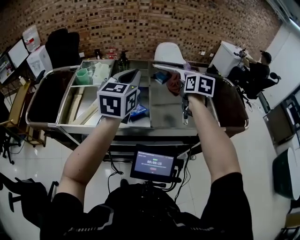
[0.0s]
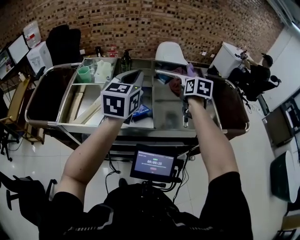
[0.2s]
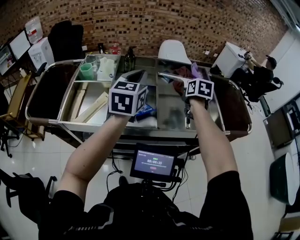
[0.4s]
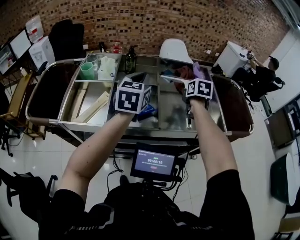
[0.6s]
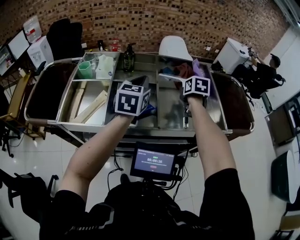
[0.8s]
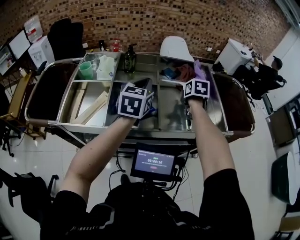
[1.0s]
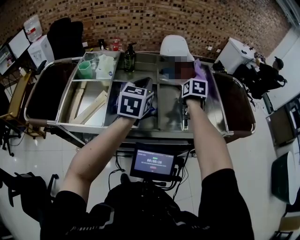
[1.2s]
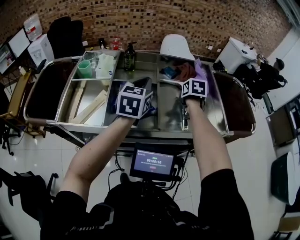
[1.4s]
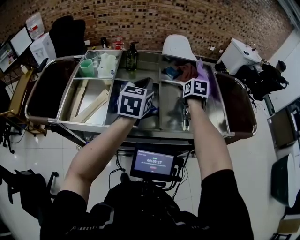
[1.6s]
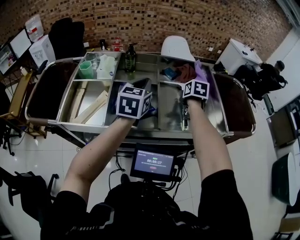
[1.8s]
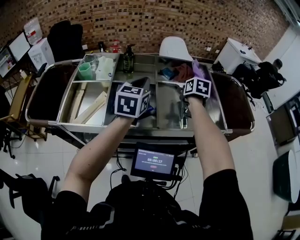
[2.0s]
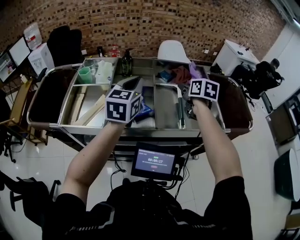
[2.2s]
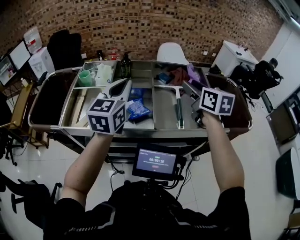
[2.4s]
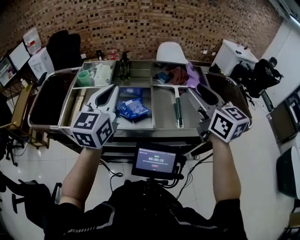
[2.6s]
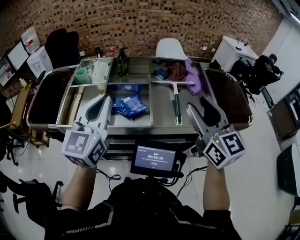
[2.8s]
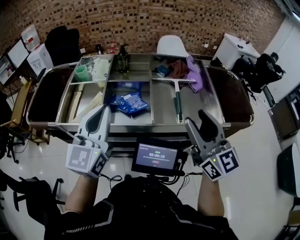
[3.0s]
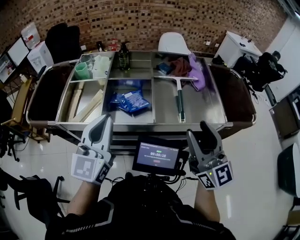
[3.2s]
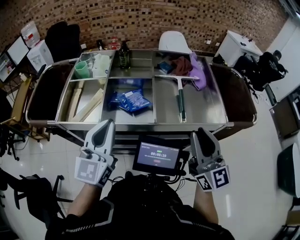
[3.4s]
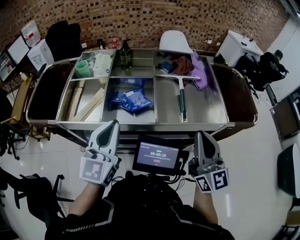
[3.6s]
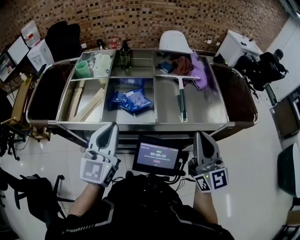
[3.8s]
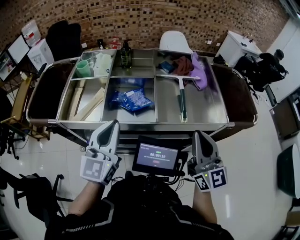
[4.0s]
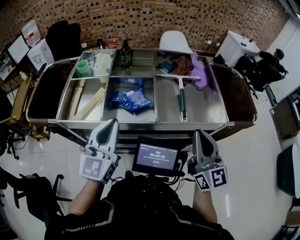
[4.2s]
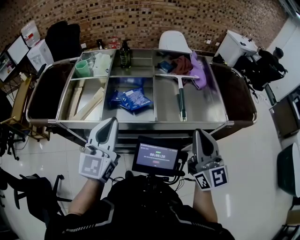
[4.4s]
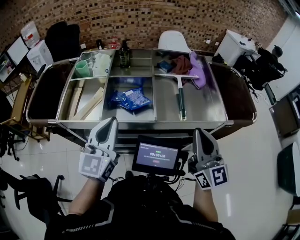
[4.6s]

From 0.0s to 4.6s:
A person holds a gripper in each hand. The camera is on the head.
From 0.0s to 1.6s: The right gripper is displaced downward by approximately 15 cm, and swivels about 20 degrees. The left gripper is displaced downward and forward by some 15 cm.
From 1.6s to 3.0s: The right gripper heads backward and upward, covering approximately 35 cm, angles its fingers upward, by about 60 degrees, and opens. The left gripper travels backward by some 20 cm, and swivels some 20 degrees.
From 3.0s to 4.6s: The two grippers go some 5 cm downward. The right gripper closes its fingers.

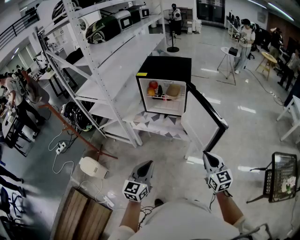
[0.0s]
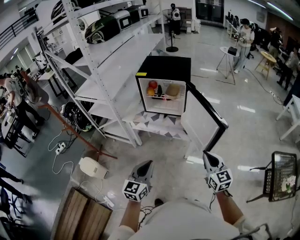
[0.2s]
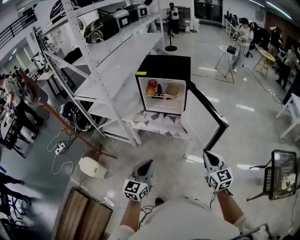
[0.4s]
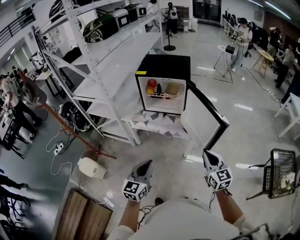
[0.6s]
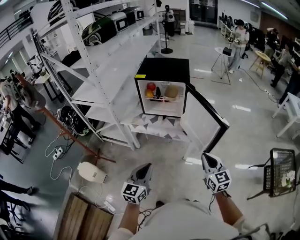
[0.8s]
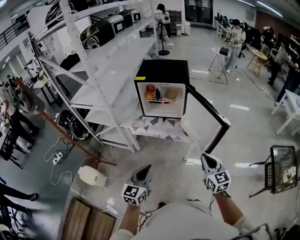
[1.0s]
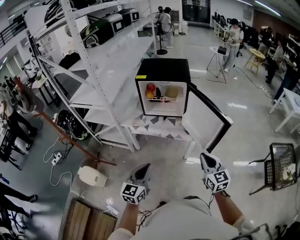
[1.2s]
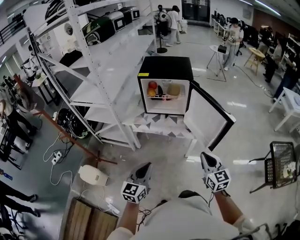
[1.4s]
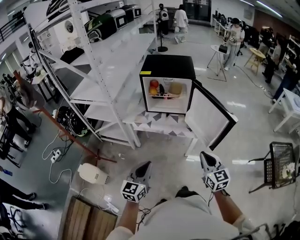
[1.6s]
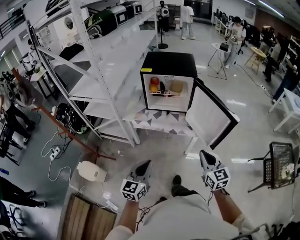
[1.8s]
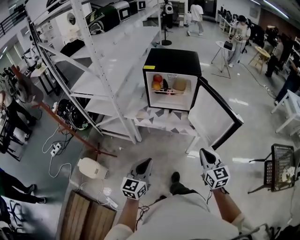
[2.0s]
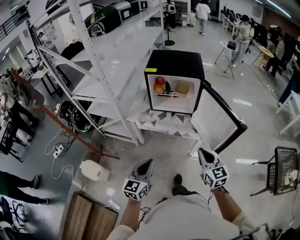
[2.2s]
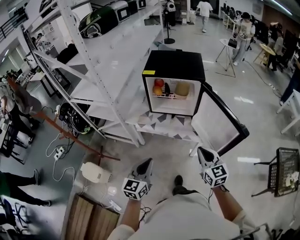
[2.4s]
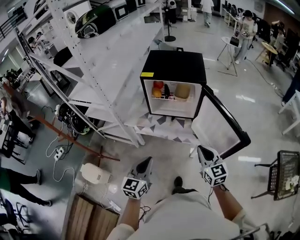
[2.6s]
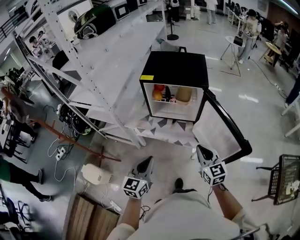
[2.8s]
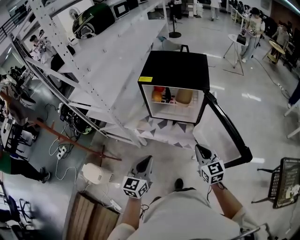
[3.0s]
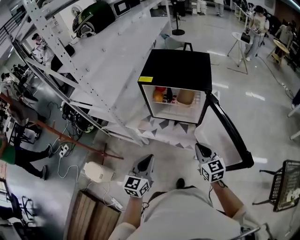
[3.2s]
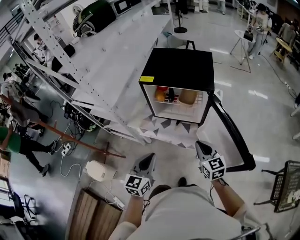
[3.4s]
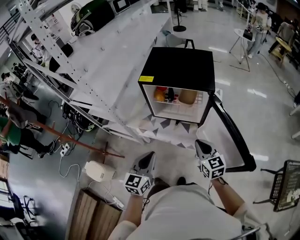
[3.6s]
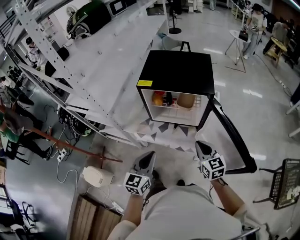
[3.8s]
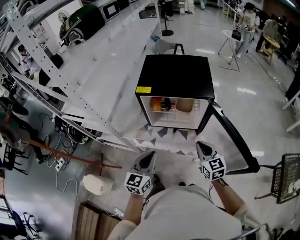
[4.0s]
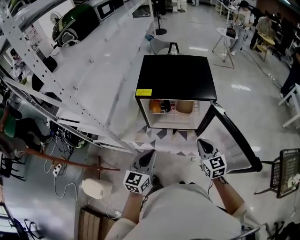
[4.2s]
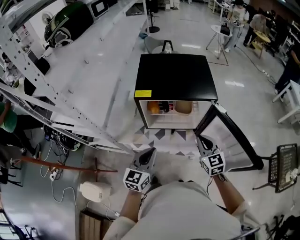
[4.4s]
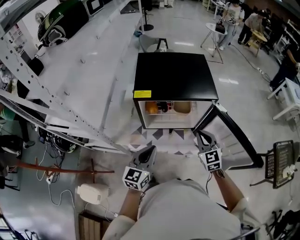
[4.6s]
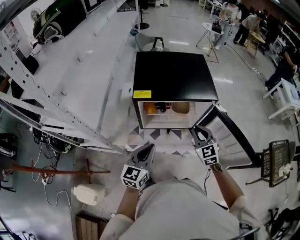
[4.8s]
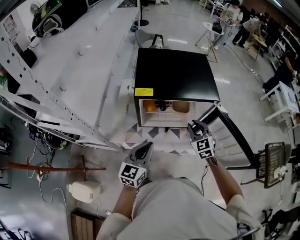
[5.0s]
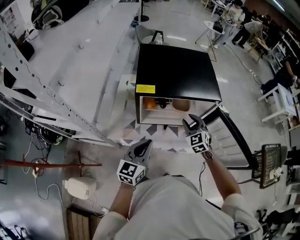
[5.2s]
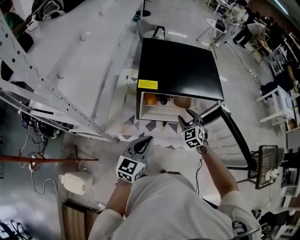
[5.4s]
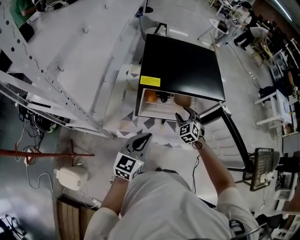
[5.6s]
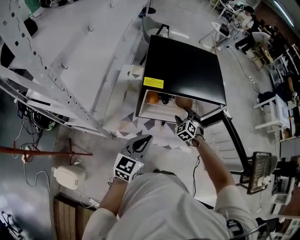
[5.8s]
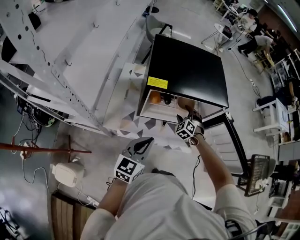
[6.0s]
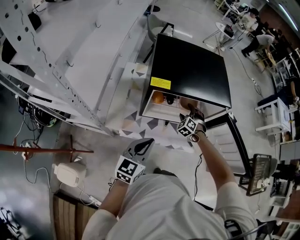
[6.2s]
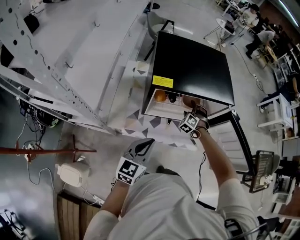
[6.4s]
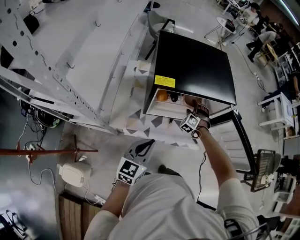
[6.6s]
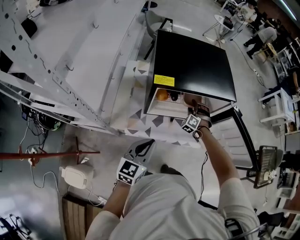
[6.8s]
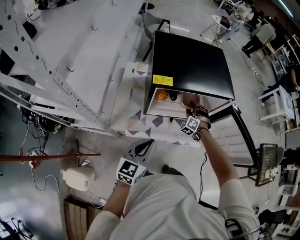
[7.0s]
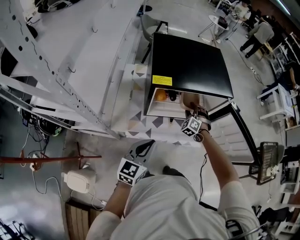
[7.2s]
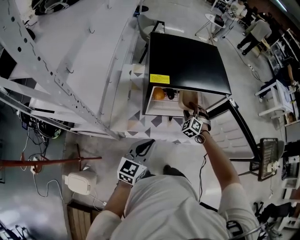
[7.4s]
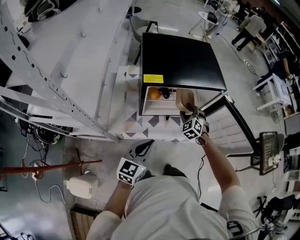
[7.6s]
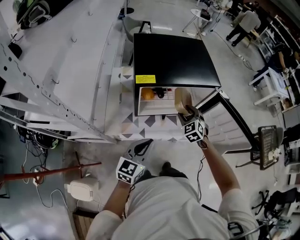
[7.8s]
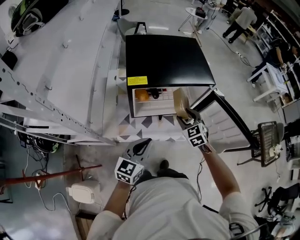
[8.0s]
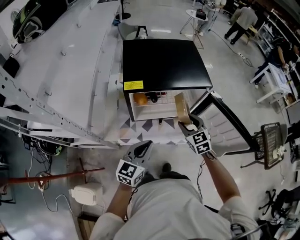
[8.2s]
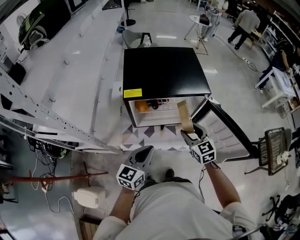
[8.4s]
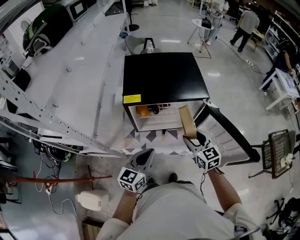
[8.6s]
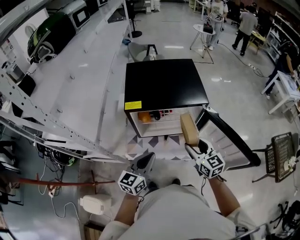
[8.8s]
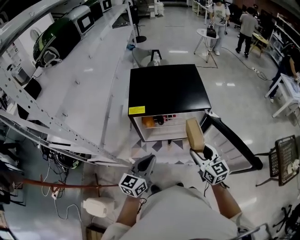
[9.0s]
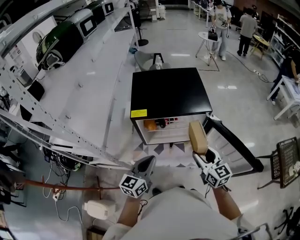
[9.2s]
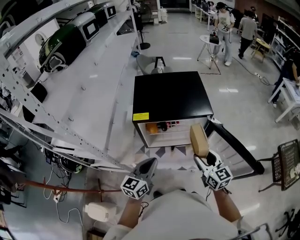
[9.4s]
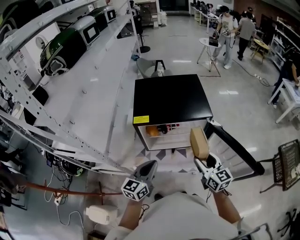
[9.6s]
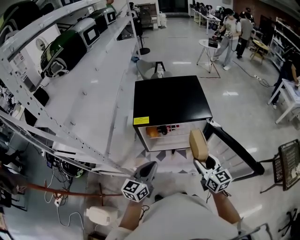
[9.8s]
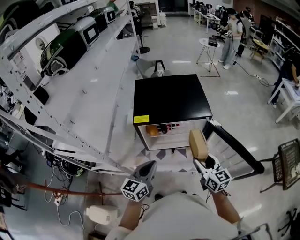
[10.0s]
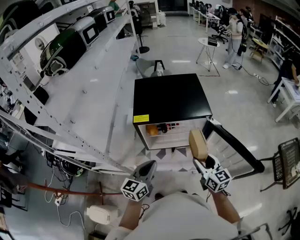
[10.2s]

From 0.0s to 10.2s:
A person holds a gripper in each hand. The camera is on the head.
From 0.0s to 1.4s: Both grippers move to the left, about 10 cm.
From 1.4s to 3.0s: Both grippers move forward, about 25 cm.
From 3.0s to 4.4s: The two grippers go roughly 15 cm forward.
From 4.4s to 5.8s: The right gripper is displaced downward, forward and to the left by about 25 cm, swivels approximately 50 degrees, and opens its fingers, while the left gripper shifts by some 5 cm.
From 7.2s to 8.8s: The right gripper goes some 25 cm upward, backward and to the right, and rolls clockwise, seen from behind, by some 60 degrees. Meanwhile the left gripper travels to the right by approximately 10 cm.
From 8.8s to 10.2s: The grippers make only small movements.

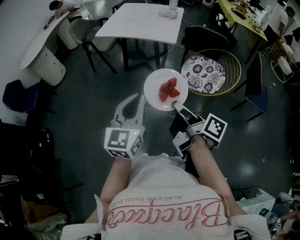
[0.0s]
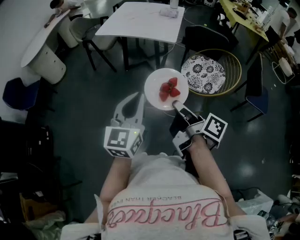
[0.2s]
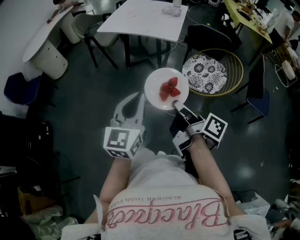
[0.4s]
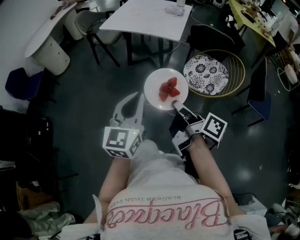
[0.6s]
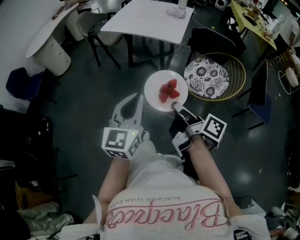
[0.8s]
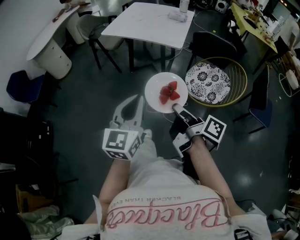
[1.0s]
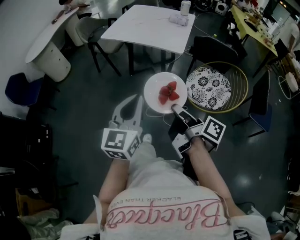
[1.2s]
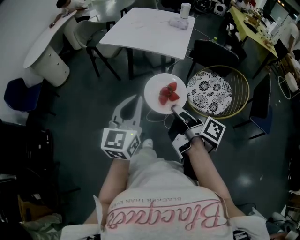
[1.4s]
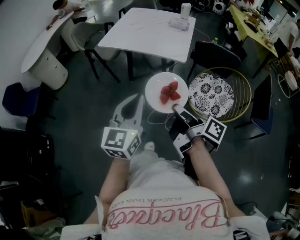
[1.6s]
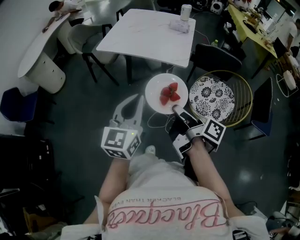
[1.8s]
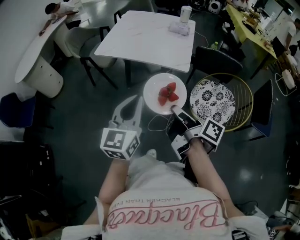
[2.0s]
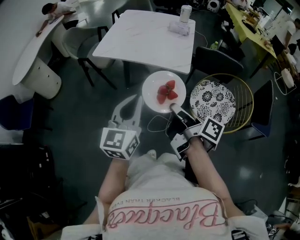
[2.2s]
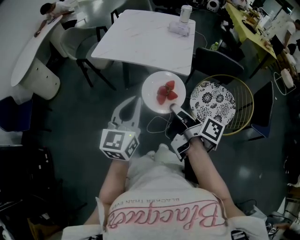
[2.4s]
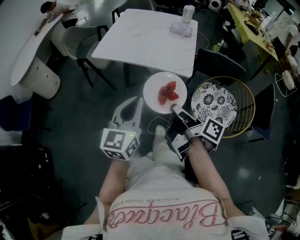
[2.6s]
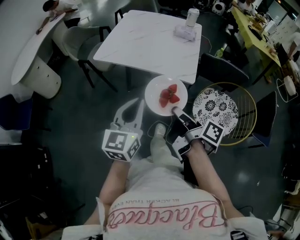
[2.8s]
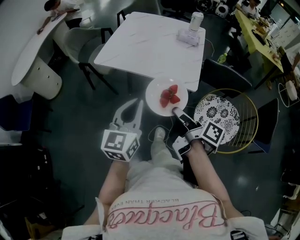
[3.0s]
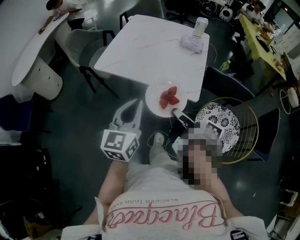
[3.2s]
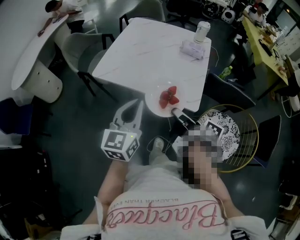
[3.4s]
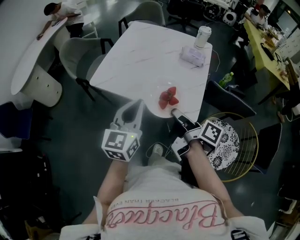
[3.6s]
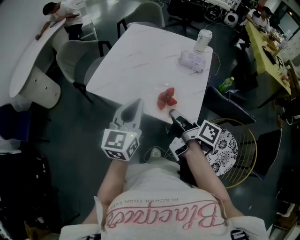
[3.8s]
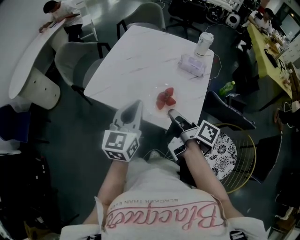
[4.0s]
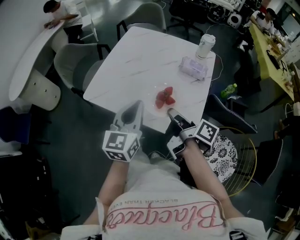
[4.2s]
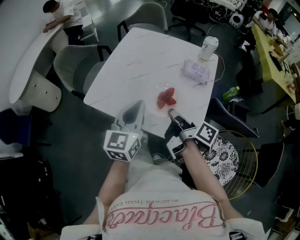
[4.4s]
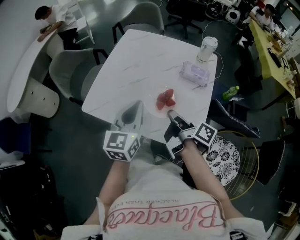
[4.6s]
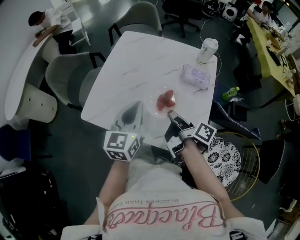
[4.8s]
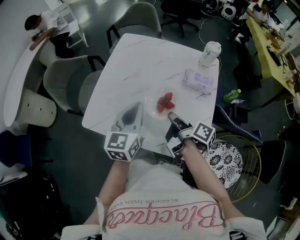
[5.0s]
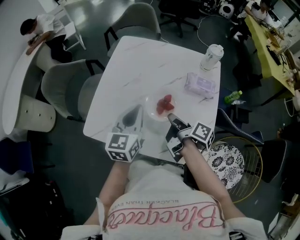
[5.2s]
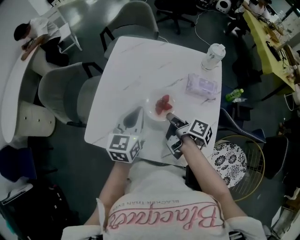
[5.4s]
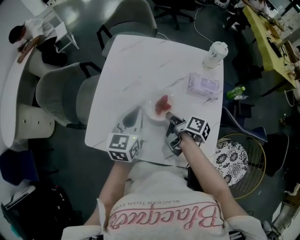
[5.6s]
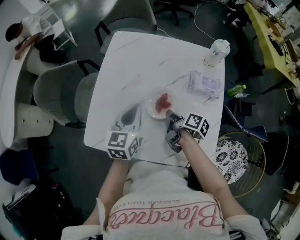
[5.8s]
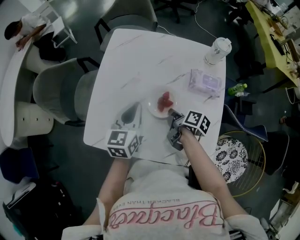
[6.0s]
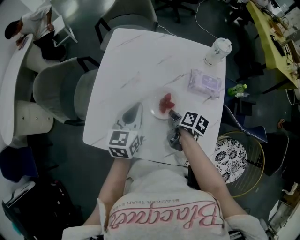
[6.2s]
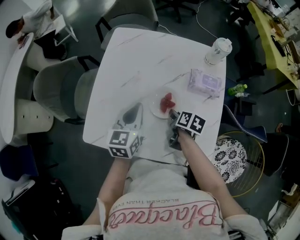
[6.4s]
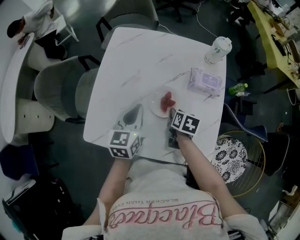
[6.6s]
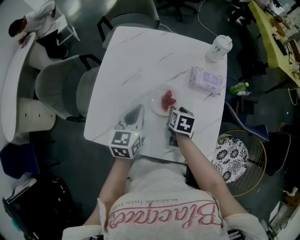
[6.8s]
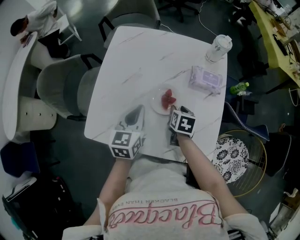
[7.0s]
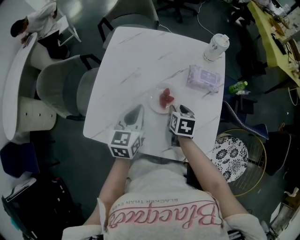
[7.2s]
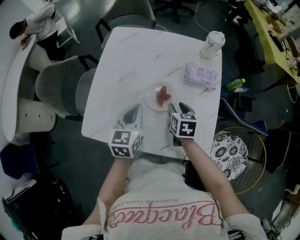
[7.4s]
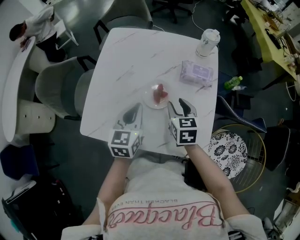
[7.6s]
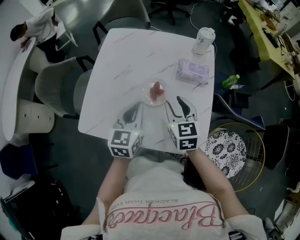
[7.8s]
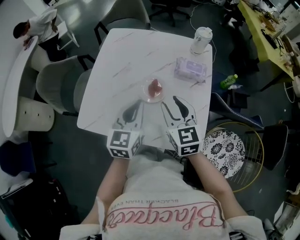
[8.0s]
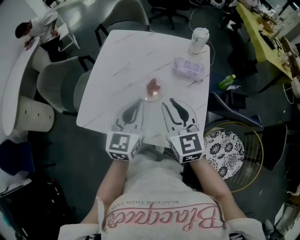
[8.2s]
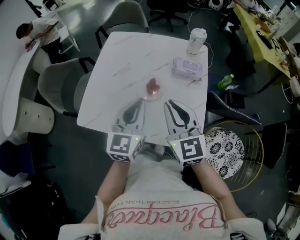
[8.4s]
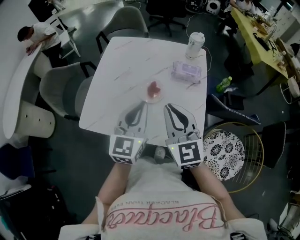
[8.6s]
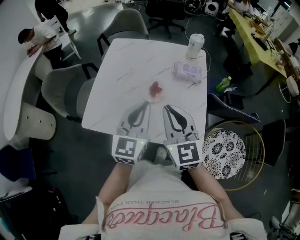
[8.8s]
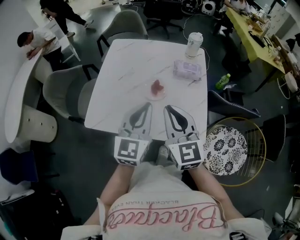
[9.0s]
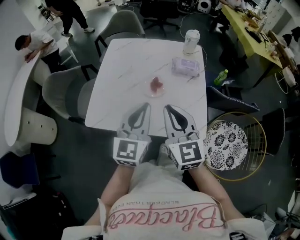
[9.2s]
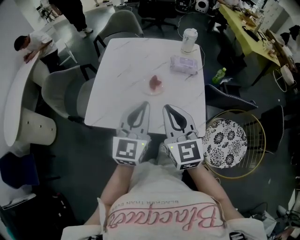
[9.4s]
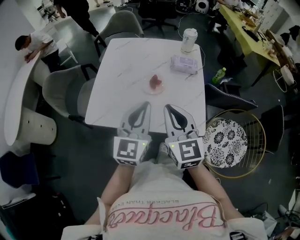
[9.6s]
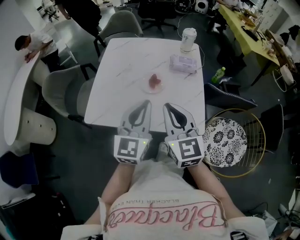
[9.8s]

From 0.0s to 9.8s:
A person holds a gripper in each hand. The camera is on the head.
From 0.0s to 1.4s: Both grippers travel together forward, roughly 15 cm.
From 1.4s to 2.8s: The grippers both shift forward by approximately 25 cm.
From 2.8s to 4.2s: Both grippers travel together forward, approximately 30 cm.
From 4.2s to 5.6s: The right gripper shifts roughly 30 cm forward and downward; the left gripper heads forward, covering roughly 25 cm.
From 5.6s to 7.0s: The right gripper shifts by roughly 5 cm, rotates around the line of its fingers by approximately 50 degrees, counterclockwise from behind, and opens its fingers.
From 7.0s to 8.4s: The left gripper travels upward, backward and to the right by approximately 15 cm, and changes its angle by some 20 degrees. Meanwhile the right gripper shifts approximately 30 cm upward and backward, points its fingers roughly 50 degrees further upward, and closes up.
From 8.4s to 9.8s: The two grippers go some 10 cm backward.
